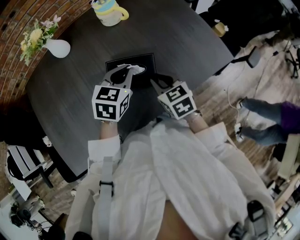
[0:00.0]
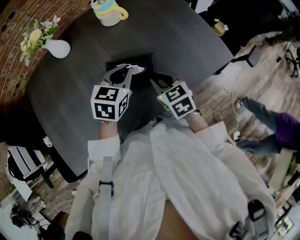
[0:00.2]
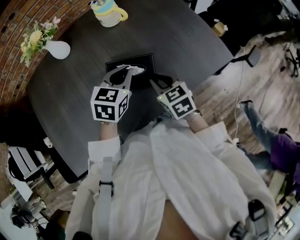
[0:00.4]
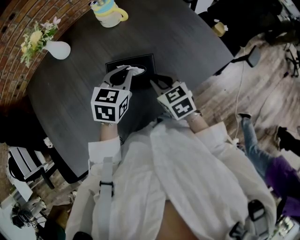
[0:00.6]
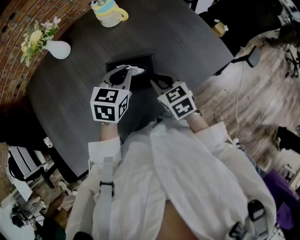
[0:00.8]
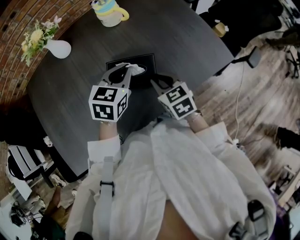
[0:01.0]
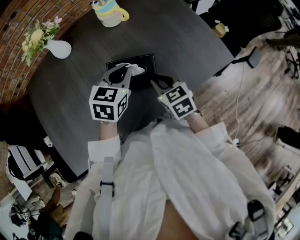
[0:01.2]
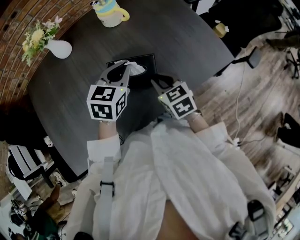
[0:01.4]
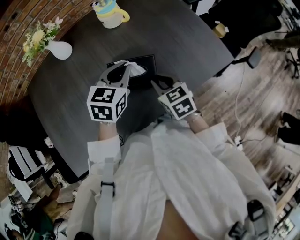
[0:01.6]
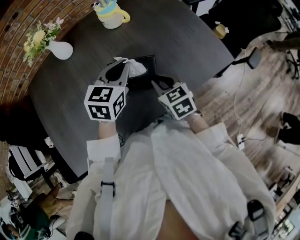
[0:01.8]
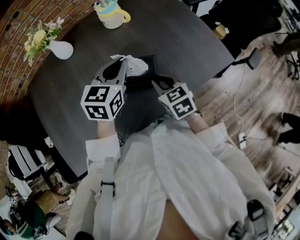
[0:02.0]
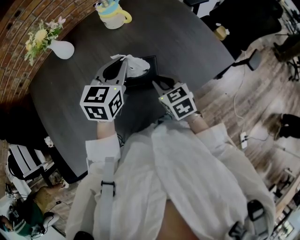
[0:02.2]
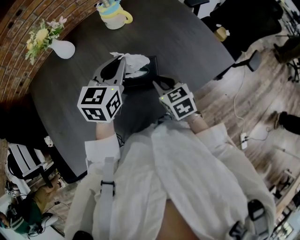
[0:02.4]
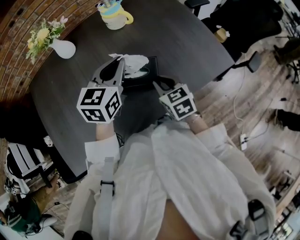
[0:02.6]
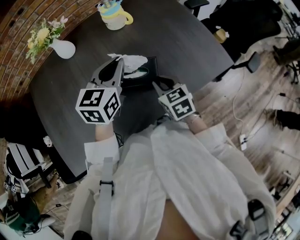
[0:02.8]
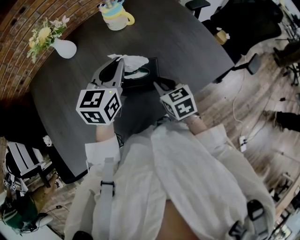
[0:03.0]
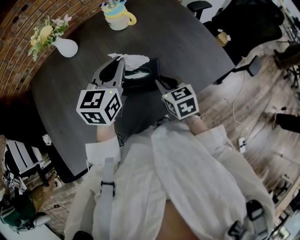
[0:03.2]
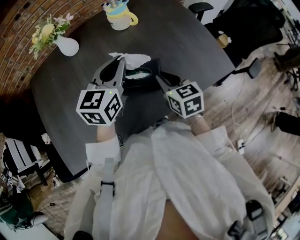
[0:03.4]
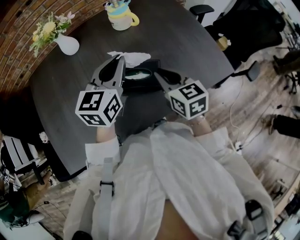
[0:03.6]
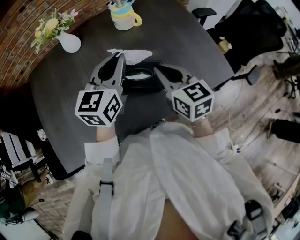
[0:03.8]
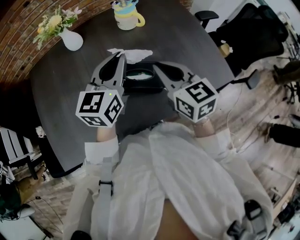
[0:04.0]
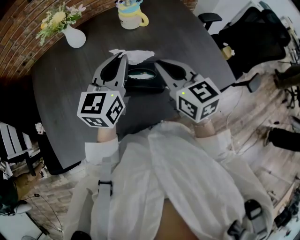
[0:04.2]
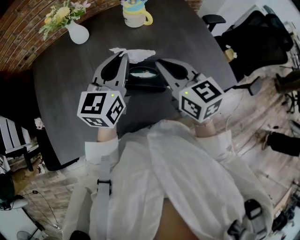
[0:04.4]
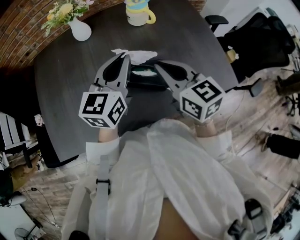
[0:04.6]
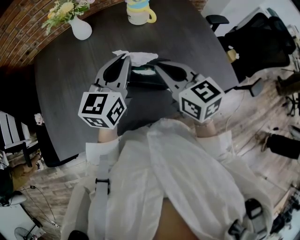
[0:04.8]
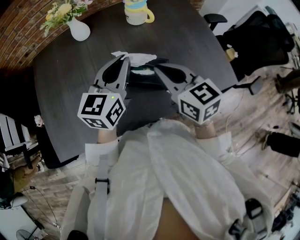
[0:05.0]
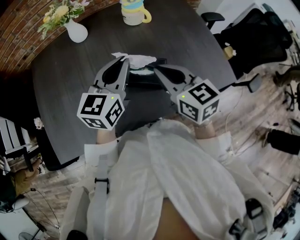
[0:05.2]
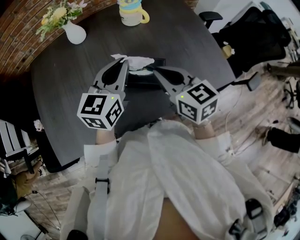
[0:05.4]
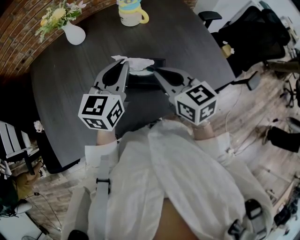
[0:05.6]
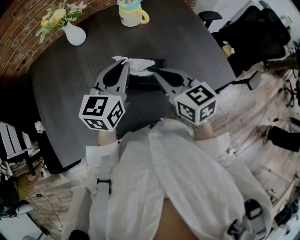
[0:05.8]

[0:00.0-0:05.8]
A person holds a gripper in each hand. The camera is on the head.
0:00.0 to 0:01.4: The grippers make only small movements.
0:01.4 to 0:02.8: The left gripper travels upward by roughly 5 cm.
0:02.8 to 0:04.4: The right gripper is displaced upward by approximately 15 cm, and swivels some 30 degrees; the left gripper shifts by some 5 cm.
0:04.4 to 0:05.8: The grippers make only small movements.

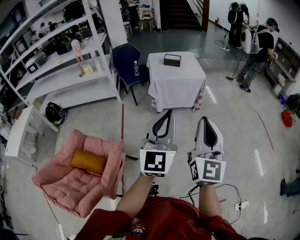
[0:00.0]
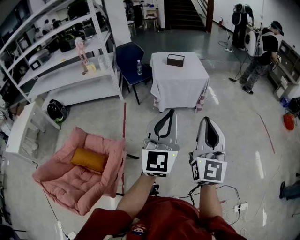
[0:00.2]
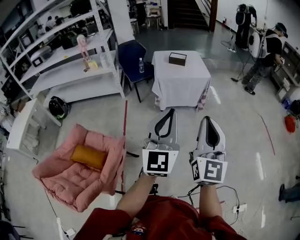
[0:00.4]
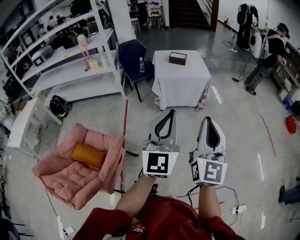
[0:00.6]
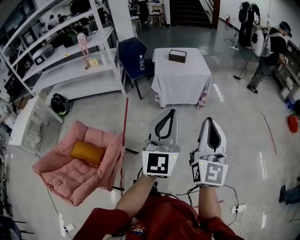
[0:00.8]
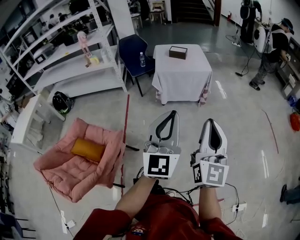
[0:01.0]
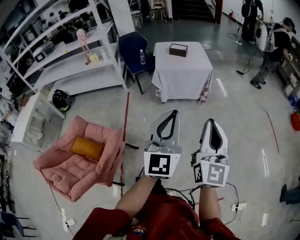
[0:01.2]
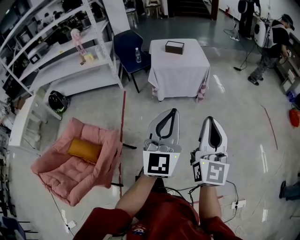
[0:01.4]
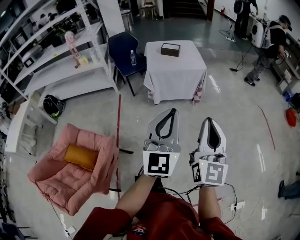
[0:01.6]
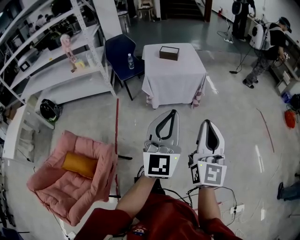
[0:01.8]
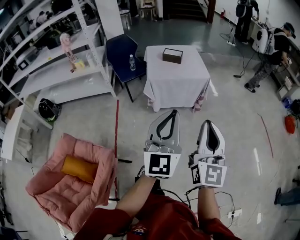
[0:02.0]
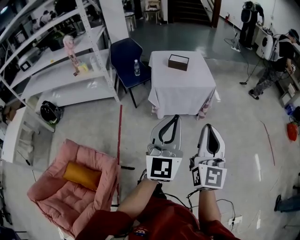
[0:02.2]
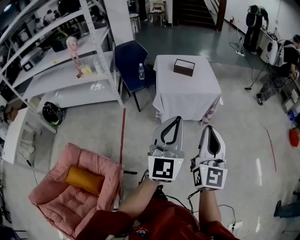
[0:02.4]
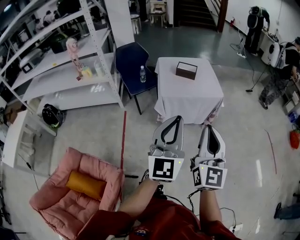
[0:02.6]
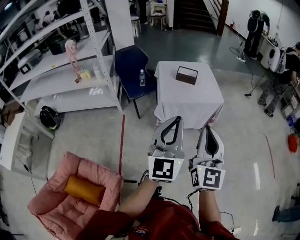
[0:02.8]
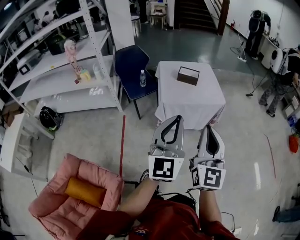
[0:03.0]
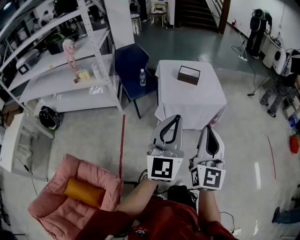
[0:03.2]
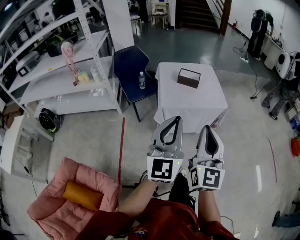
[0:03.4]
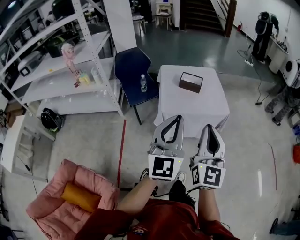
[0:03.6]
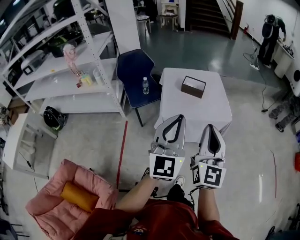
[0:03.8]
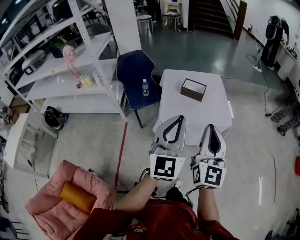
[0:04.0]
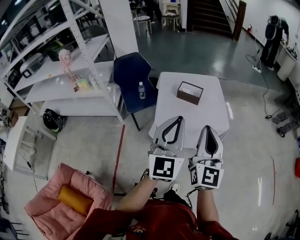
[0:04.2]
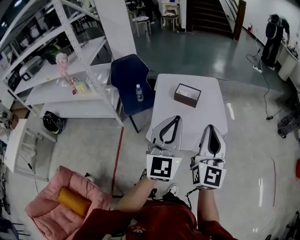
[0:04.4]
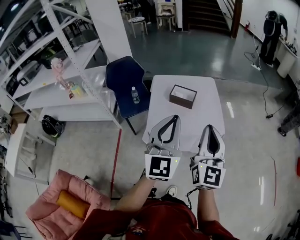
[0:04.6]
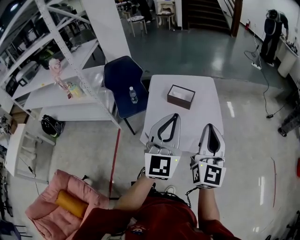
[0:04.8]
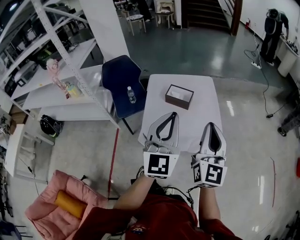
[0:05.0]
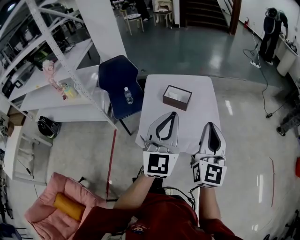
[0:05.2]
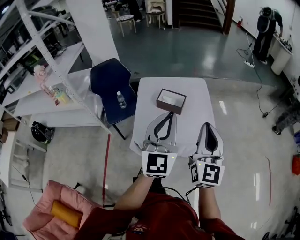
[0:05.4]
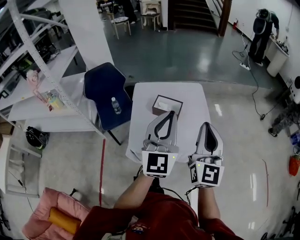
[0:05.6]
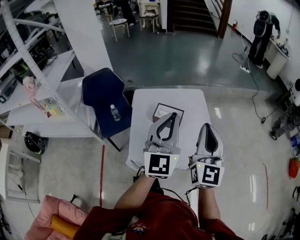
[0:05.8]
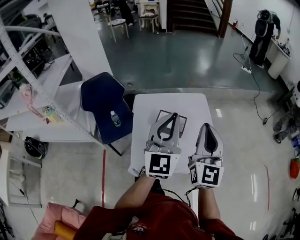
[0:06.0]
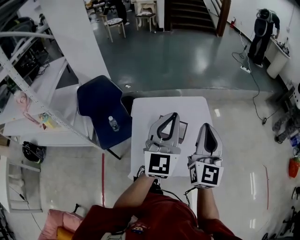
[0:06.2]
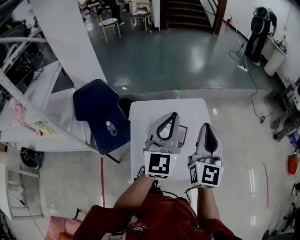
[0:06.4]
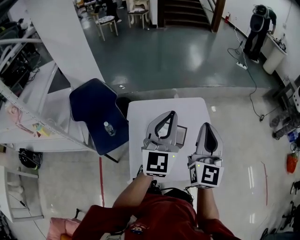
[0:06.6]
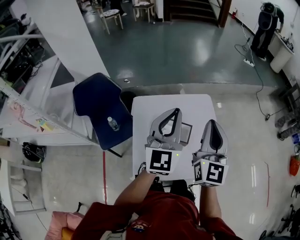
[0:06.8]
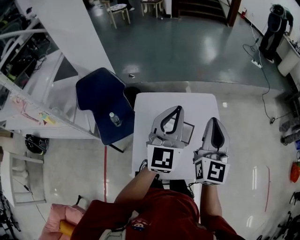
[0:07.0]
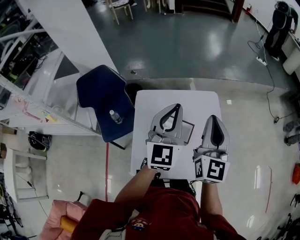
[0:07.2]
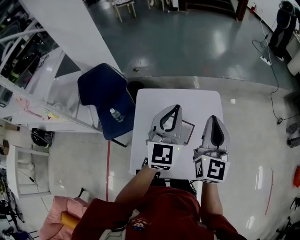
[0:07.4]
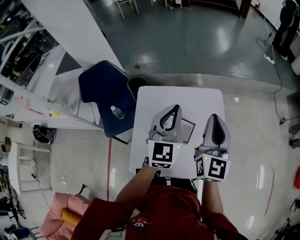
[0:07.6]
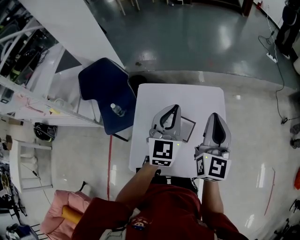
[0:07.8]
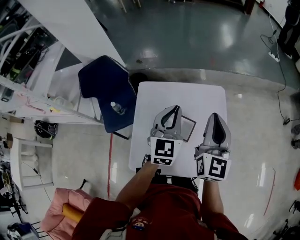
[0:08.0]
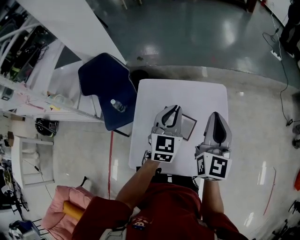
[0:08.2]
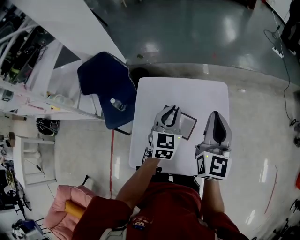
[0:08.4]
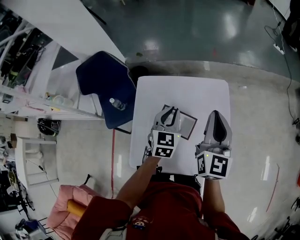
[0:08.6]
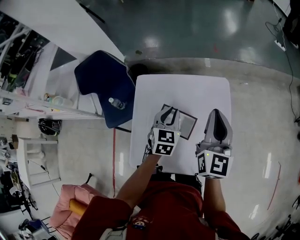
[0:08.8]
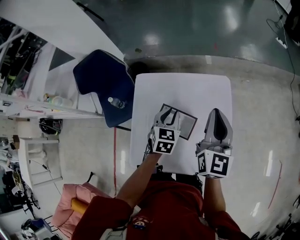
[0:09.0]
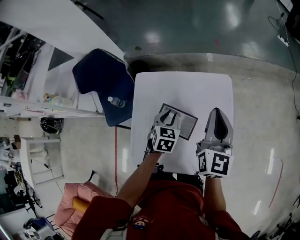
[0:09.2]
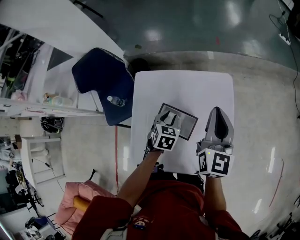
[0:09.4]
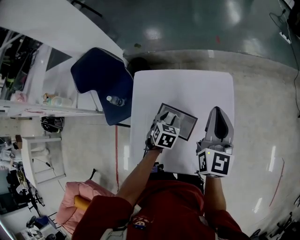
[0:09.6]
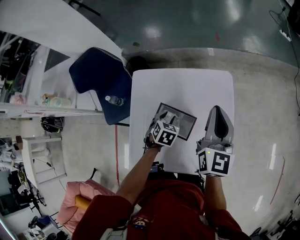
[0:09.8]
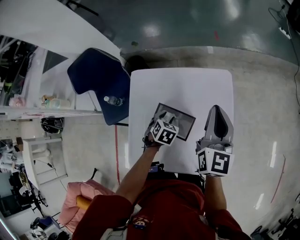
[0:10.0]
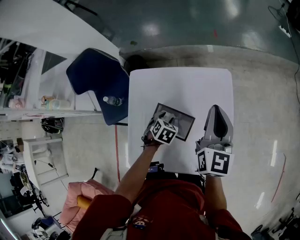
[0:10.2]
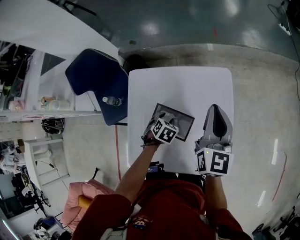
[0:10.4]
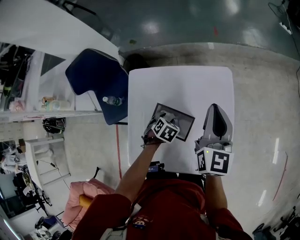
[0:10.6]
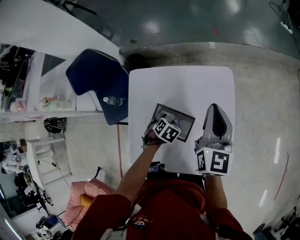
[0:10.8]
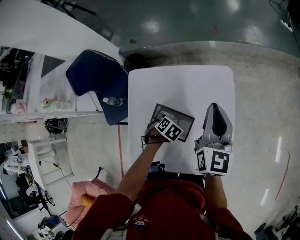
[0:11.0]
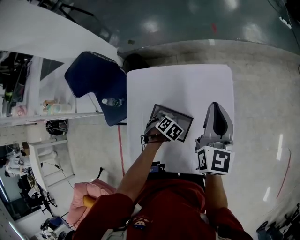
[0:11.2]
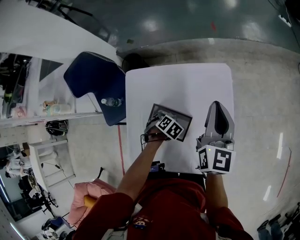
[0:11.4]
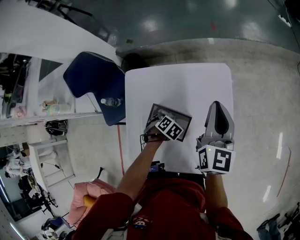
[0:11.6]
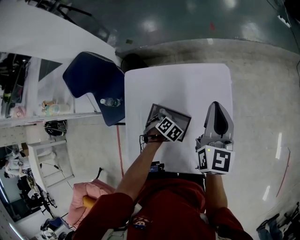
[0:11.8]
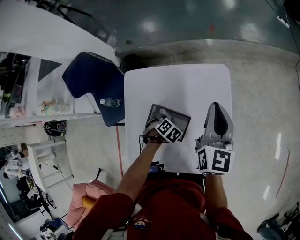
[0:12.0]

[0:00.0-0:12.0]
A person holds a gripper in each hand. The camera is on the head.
0:00.0 to 0:01.6: Both grippers travel together to the right and forward, about 10 cm.
0:01.6 to 0:03.0: The grippers both shift forward and to the left by about 35 cm.
0:03.0 to 0:04.4: The two grippers go about 30 cm forward.
0:04.4 to 0:06.0: Both grippers move forward, about 35 cm.
0:06.0 to 0:07.6: The right gripper is displaced forward by some 20 cm. The left gripper moves forward and downward, roughly 25 cm.
0:07.6 to 0:09.0: The right gripper shifts approximately 10 cm downward and forward. The left gripper travels downward by roughly 25 cm, and tilts its fingers some 30 degrees downward.
0:09.0 to 0:10.4: The right gripper heads forward, covering about 5 cm, while the left gripper is displaced downward by about 15 cm, angles its fingers downward, by roughly 30 degrees, and opens its fingers.
0:10.4 to 0:12.0: The left gripper turns by some 20 degrees, and closes up.

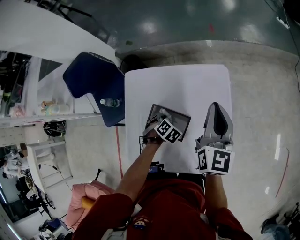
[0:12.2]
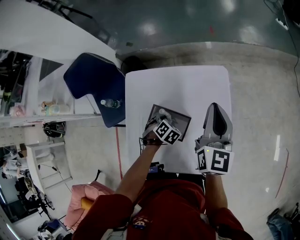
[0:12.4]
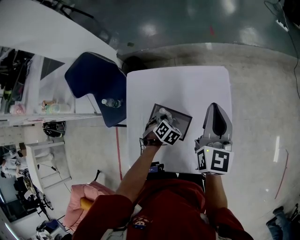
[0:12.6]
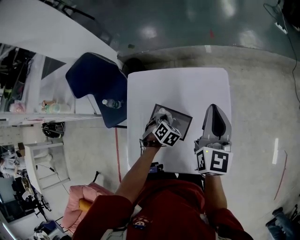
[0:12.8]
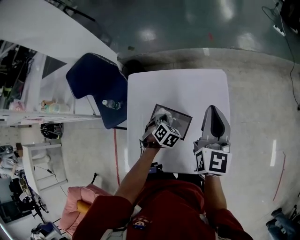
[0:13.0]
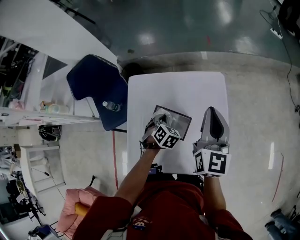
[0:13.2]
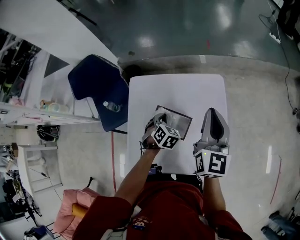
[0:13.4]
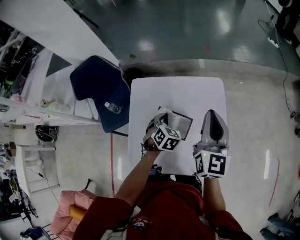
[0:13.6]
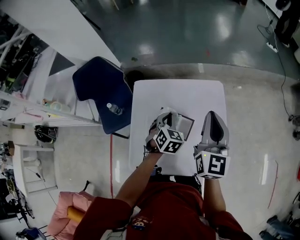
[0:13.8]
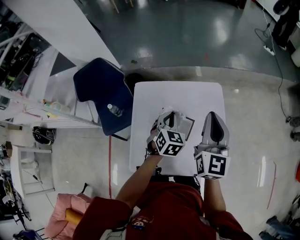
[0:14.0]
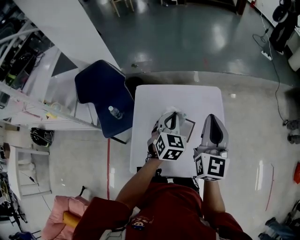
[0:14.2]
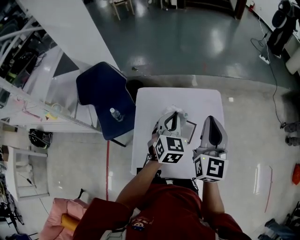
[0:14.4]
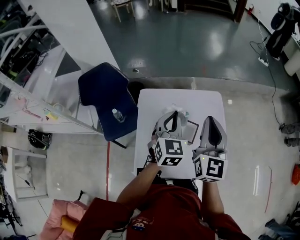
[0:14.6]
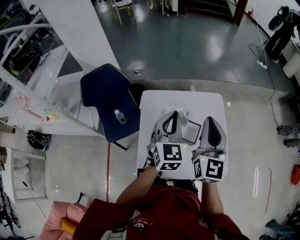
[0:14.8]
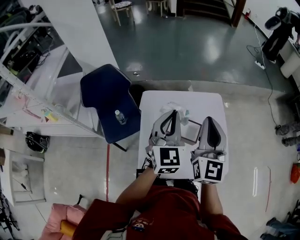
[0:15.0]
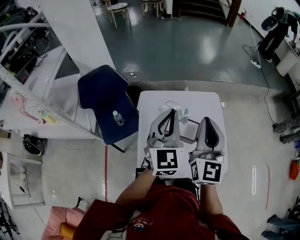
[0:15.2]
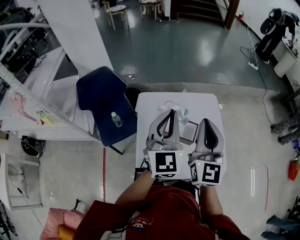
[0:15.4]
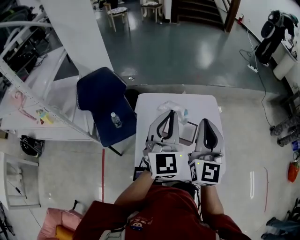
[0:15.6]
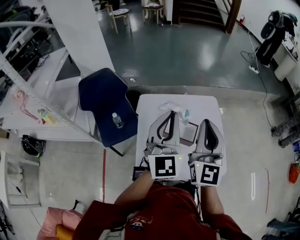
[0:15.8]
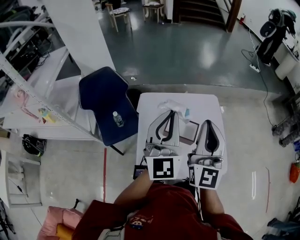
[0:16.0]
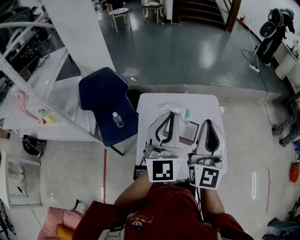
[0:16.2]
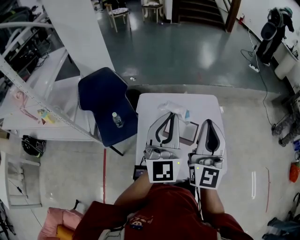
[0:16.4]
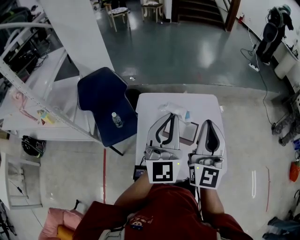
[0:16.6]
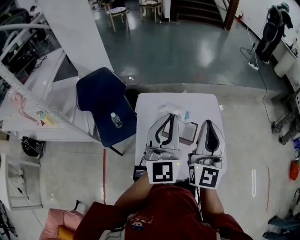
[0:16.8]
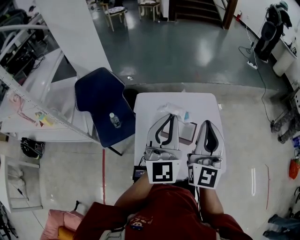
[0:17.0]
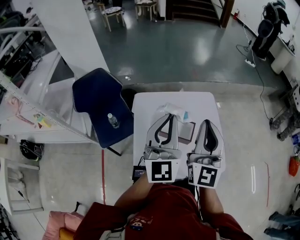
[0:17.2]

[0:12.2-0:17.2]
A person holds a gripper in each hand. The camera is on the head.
0:12.2 to 0:13.8: The left gripper shifts about 20 cm upward, and angles its fingers upward, by some 30 degrees, while the right gripper moves backward, upward and to the left, approximately 15 cm.
0:13.8 to 0:15.6: The left gripper heads upward and backward, covering approximately 30 cm, and tilts its fingers about 50 degrees upward. Meanwhile the right gripper goes some 20 cm to the left, backward and upward.
0:15.6 to 0:17.2: The grippers make only small movements.

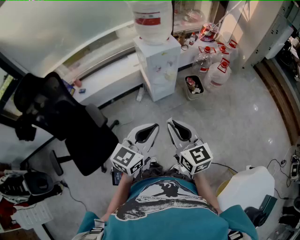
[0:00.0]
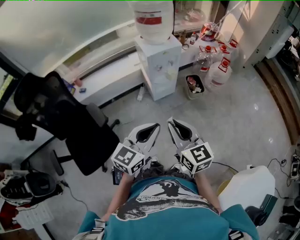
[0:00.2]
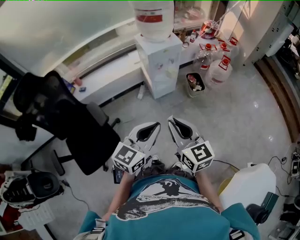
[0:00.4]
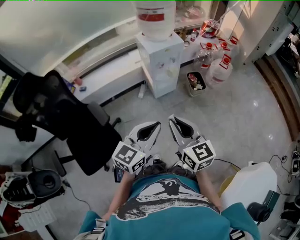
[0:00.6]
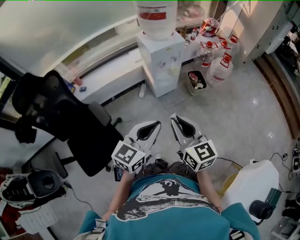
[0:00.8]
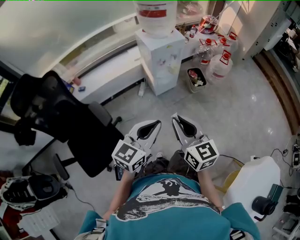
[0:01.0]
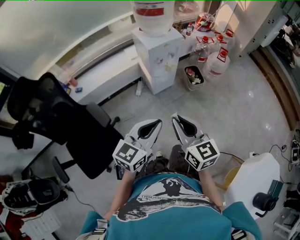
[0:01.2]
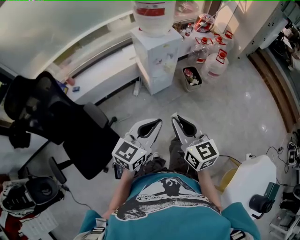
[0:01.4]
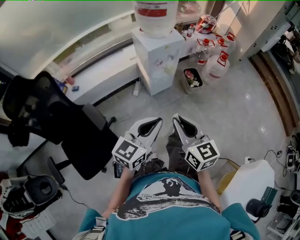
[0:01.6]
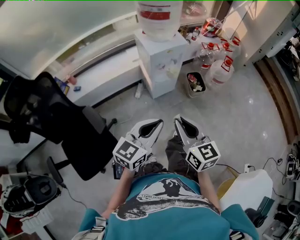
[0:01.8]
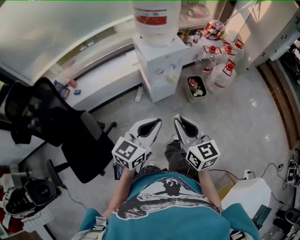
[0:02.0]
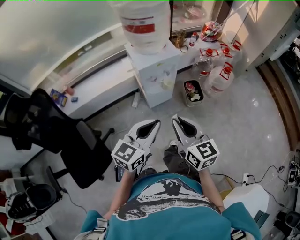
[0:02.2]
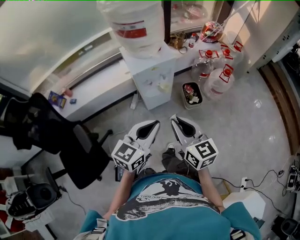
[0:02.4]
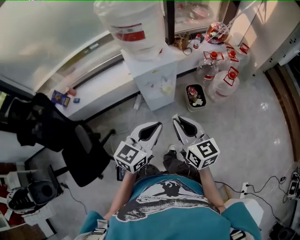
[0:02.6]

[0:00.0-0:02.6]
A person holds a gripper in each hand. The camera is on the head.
0:00.0 to 0:01.2: The grippers both shift to the left by some 5 cm.
0:01.2 to 0:02.6: The two grippers go some 30 cm forward and to the right.
